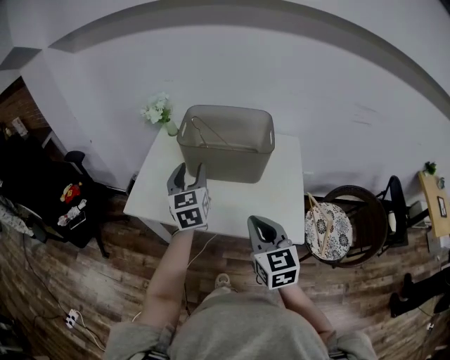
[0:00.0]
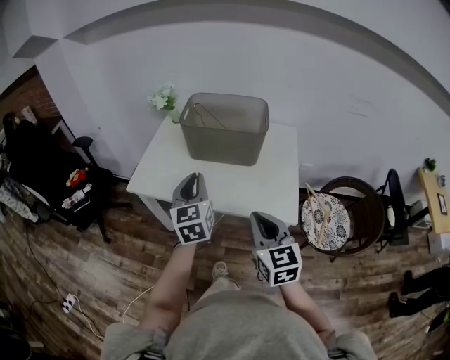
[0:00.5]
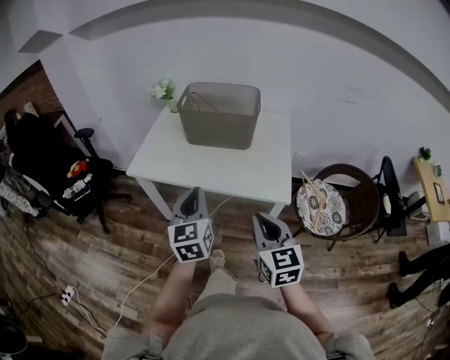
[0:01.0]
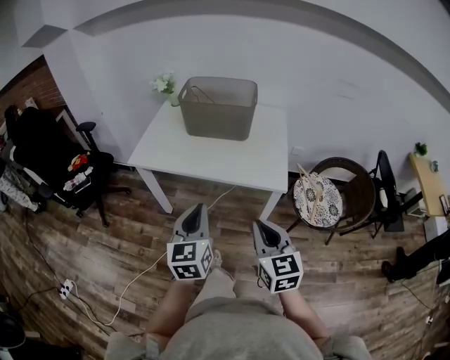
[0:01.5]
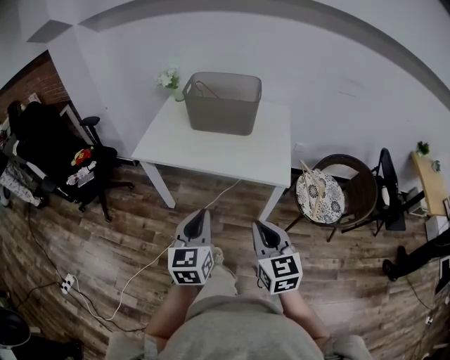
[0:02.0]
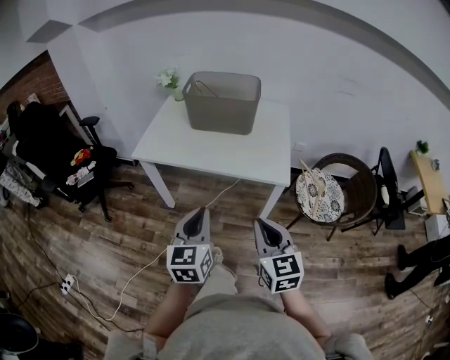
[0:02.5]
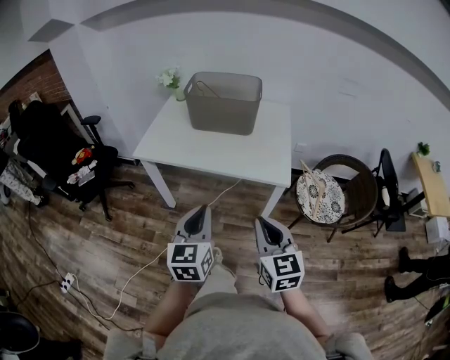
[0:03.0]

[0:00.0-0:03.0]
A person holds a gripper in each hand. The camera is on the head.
0:00.0 to 0:01.5: Both grippers move backward, roughly 35 cm. The left gripper closes up.
0:01.5 to 0:03.0: There are only small adjustments of the grippers.

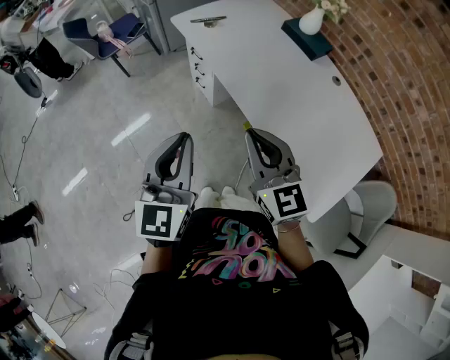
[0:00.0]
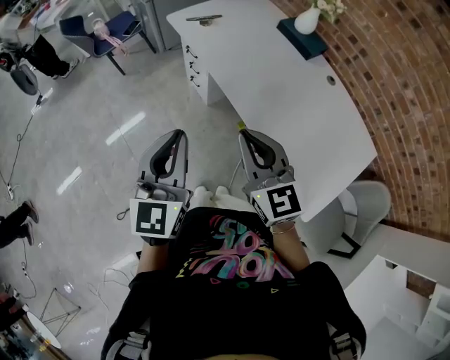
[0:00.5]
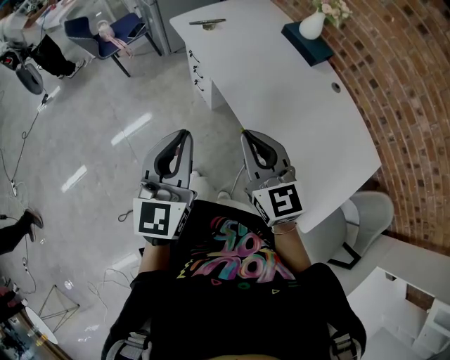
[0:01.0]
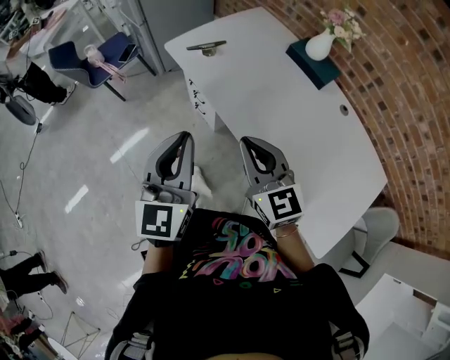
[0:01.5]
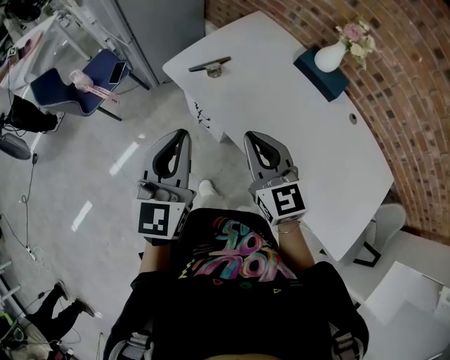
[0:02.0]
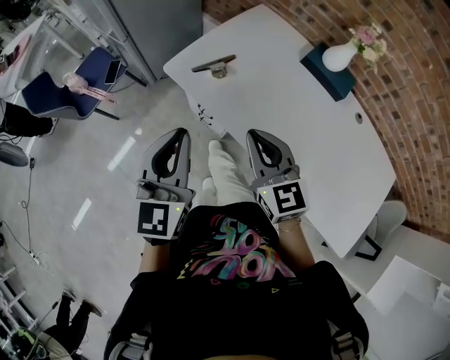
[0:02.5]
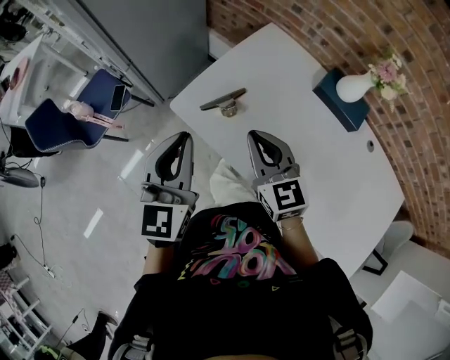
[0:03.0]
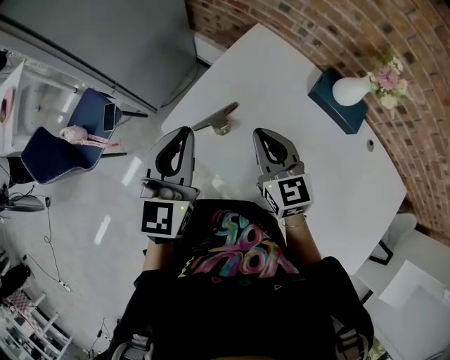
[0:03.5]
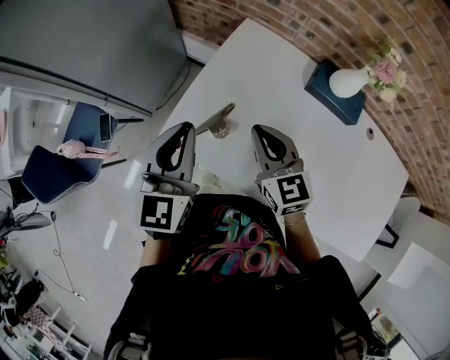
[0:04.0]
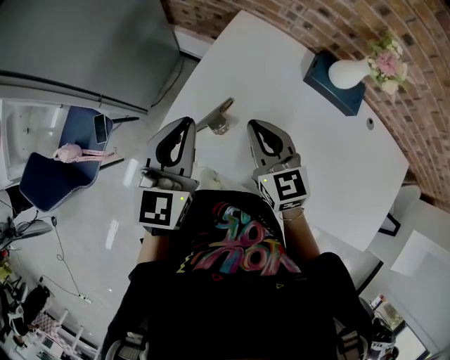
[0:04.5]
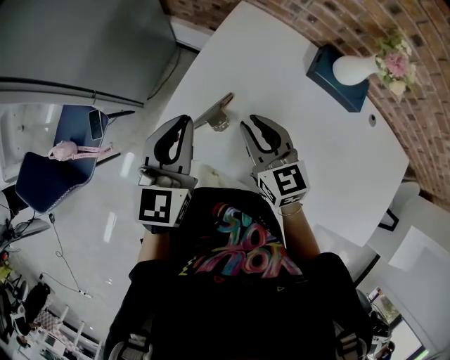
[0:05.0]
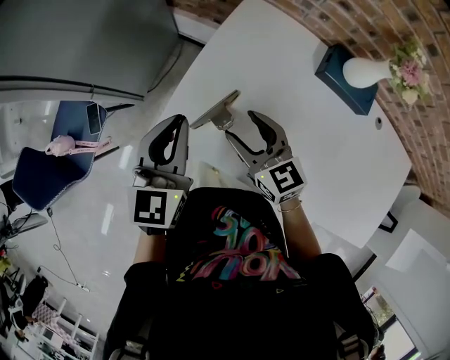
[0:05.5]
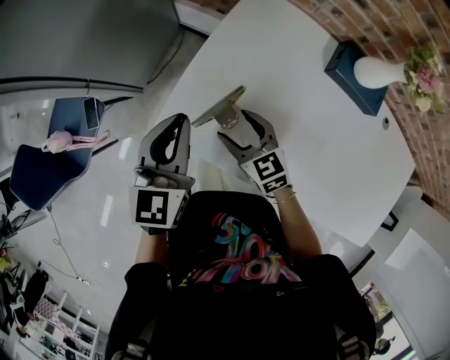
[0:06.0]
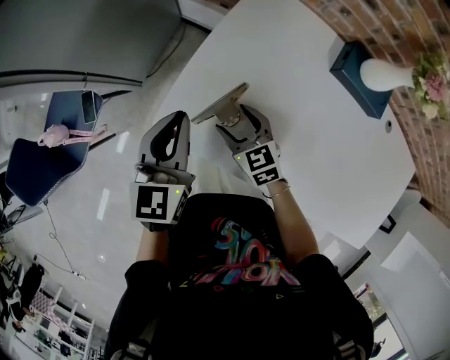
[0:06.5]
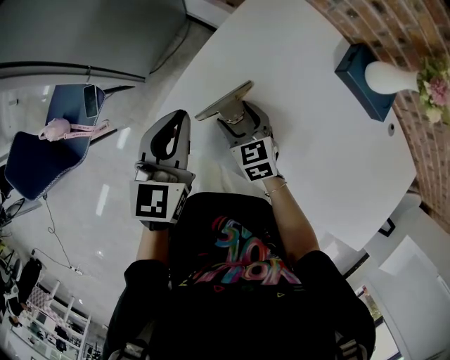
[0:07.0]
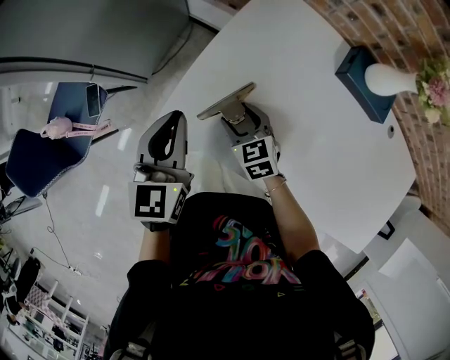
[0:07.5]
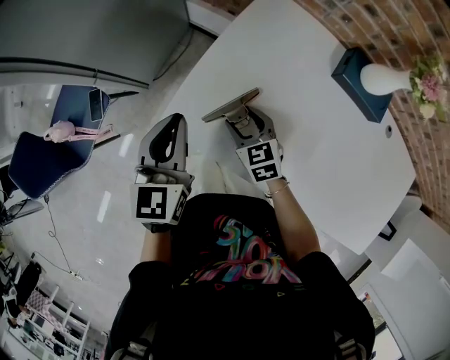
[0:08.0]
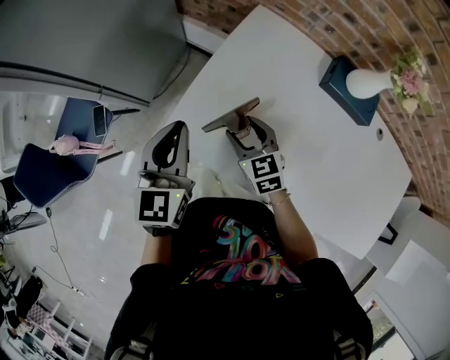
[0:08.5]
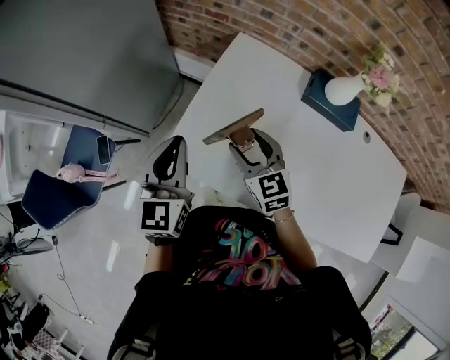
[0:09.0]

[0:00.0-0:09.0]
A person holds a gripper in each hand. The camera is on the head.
0:00.0 to 0:02.0: Both grippers travel together forward, approximately 40 cm.
0:02.0 to 0:04.5: The two grippers go roughly 35 cm forward. The left gripper changes its angle by roughly 20 degrees.
0:04.5 to 0:07.0: The left gripper travels downward by roughly 15 cm, while the right gripper is displaced downward by roughly 20 cm, swivels some 20 degrees, and opens up.
0:07.0 to 0:09.0: The left gripper shifts some 10 cm upward; the right gripper is displaced upward by roughly 20 cm.

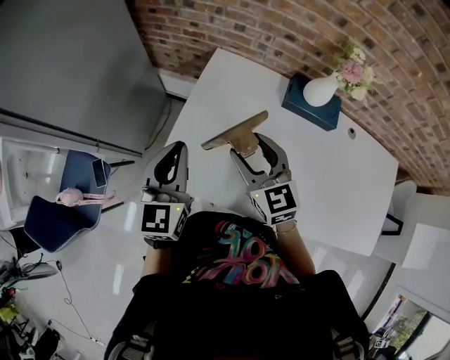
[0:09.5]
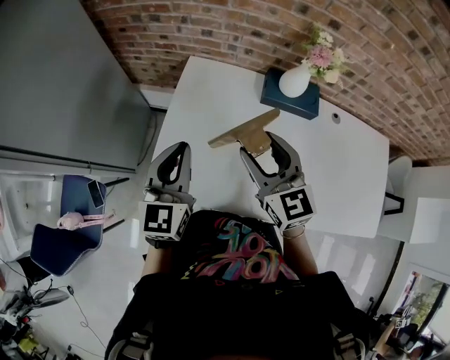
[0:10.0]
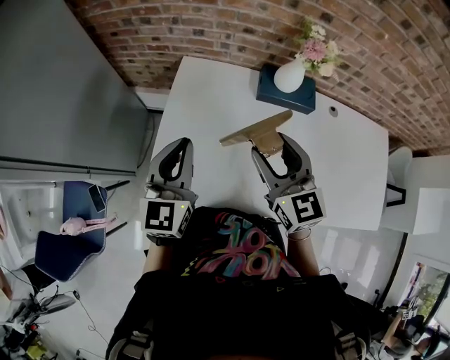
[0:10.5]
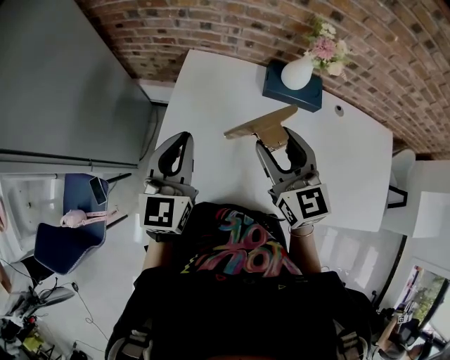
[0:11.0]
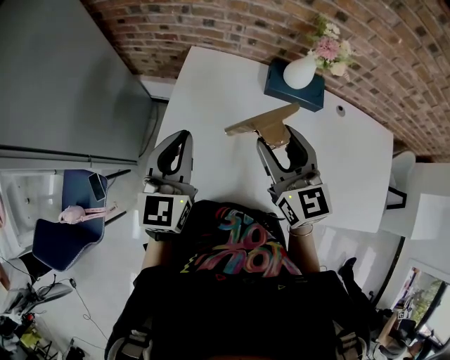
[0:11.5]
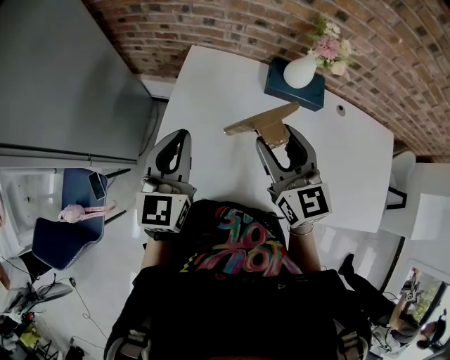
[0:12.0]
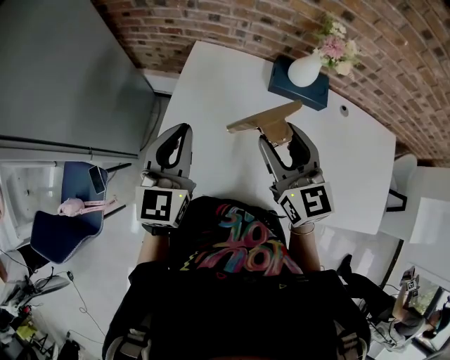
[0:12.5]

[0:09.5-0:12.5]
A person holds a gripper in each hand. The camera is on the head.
0:09.5 to 0:11.0: The left gripper travels to the right by roughly 5 cm. Meanwhile the right gripper shifts approximately 10 cm to the right and upward.
0:11.0 to 0:12.5: Neither gripper changes place.

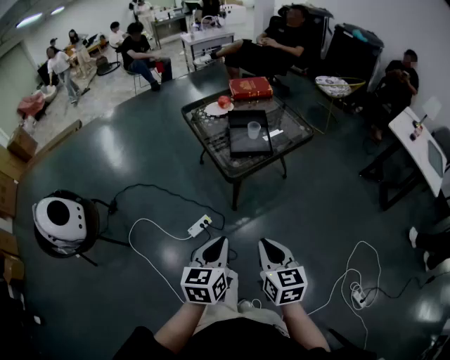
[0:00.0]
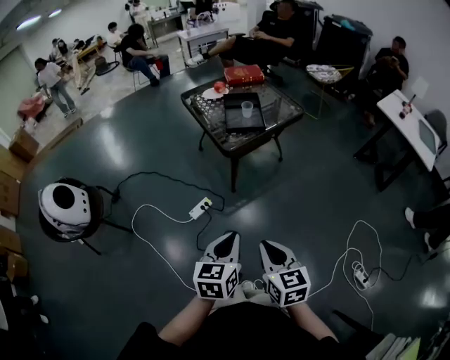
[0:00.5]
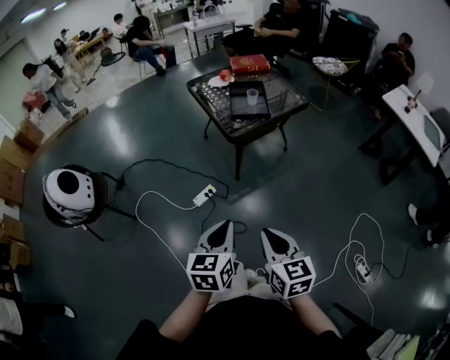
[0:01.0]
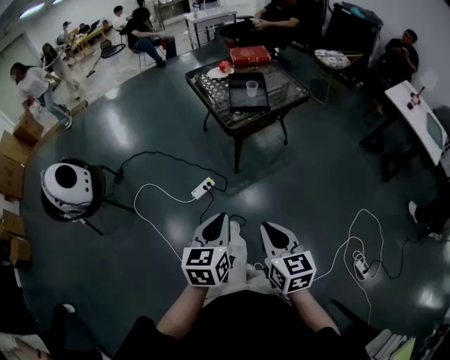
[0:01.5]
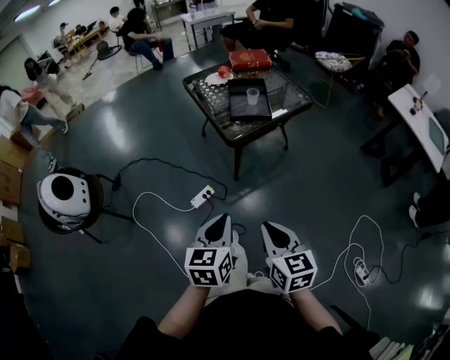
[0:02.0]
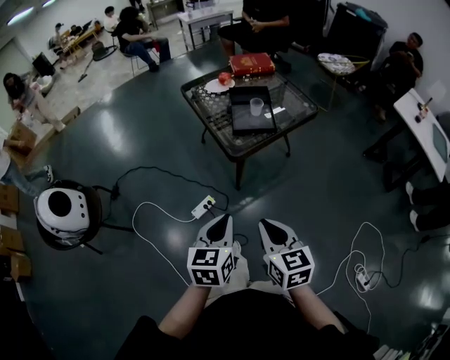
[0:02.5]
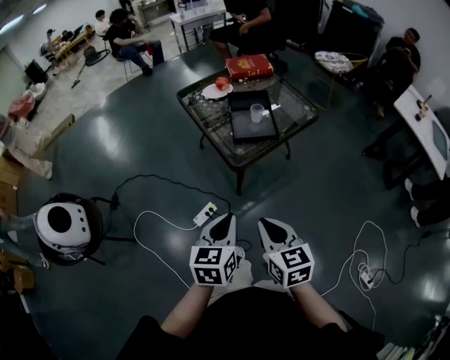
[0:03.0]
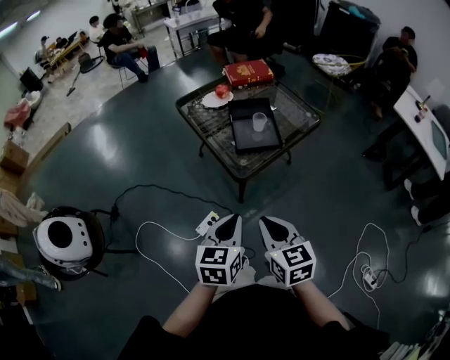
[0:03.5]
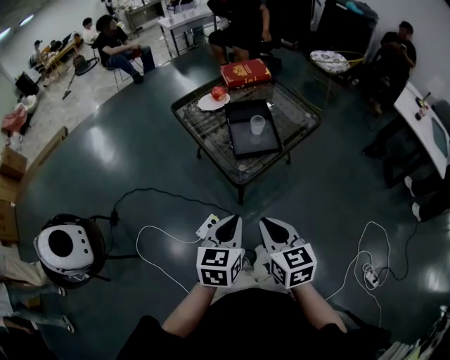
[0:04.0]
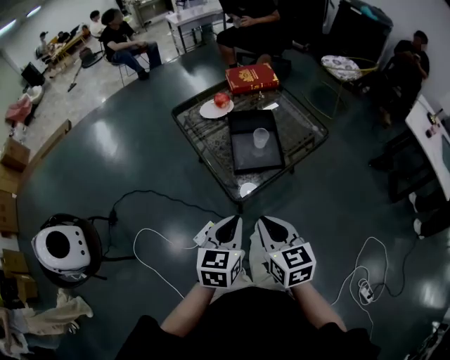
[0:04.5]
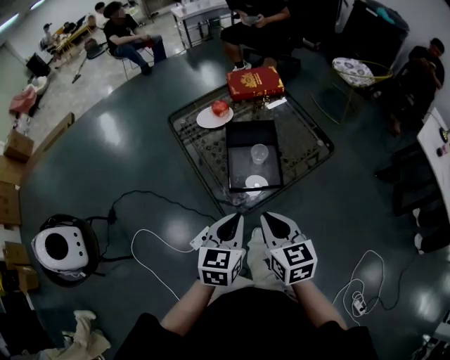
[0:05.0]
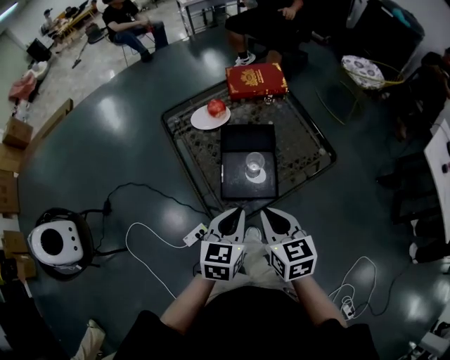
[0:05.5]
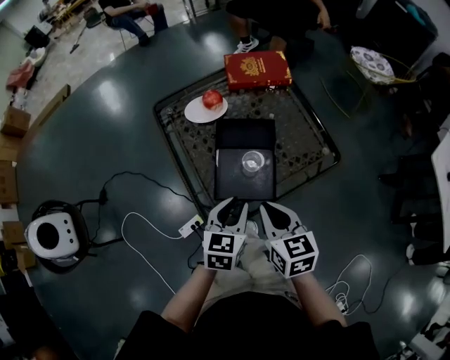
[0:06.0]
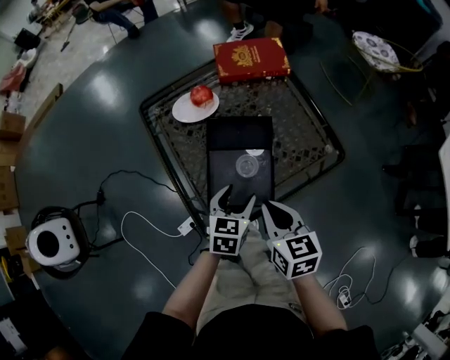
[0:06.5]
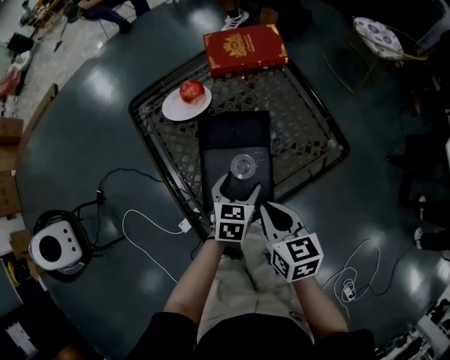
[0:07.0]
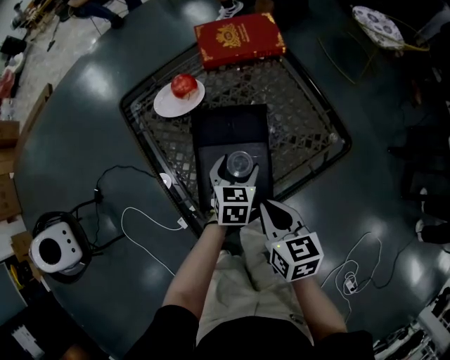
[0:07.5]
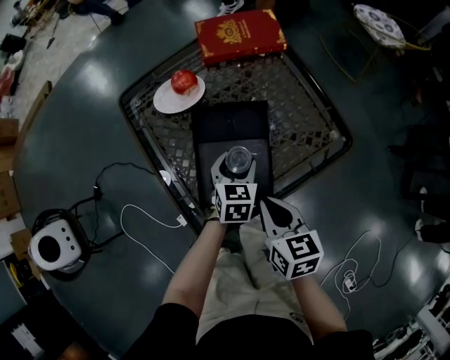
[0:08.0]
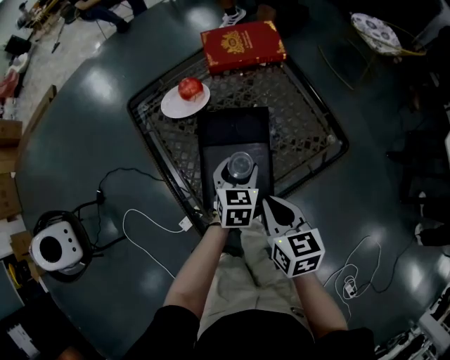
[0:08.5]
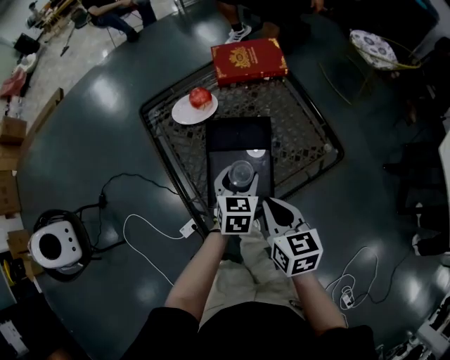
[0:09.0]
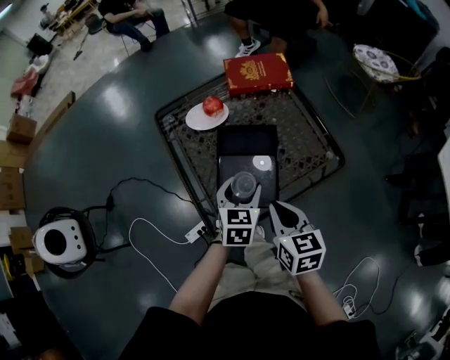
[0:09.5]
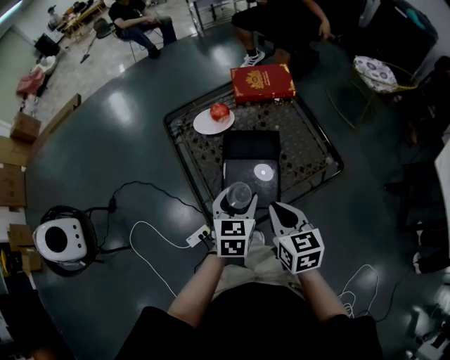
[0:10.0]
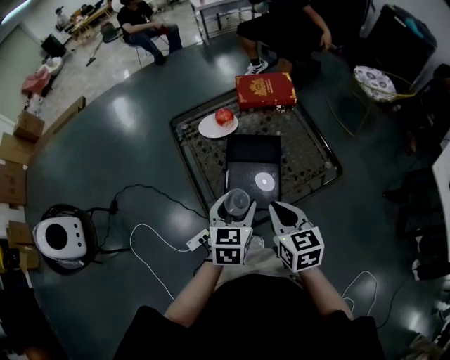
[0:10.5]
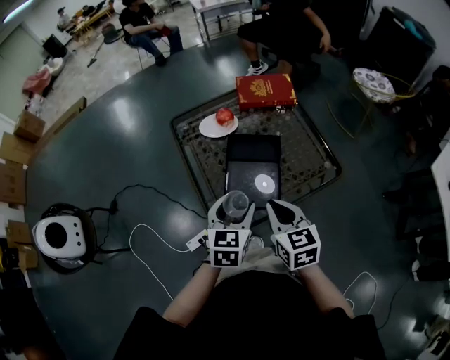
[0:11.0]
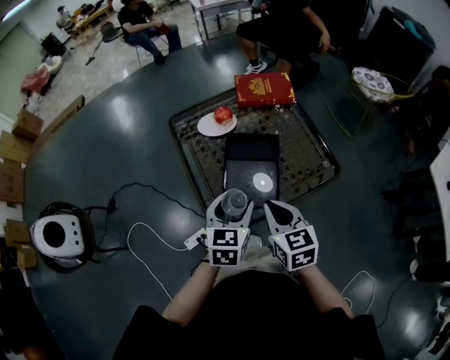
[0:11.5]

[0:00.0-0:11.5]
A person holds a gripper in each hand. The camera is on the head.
0:00.0 to 0:02.0: Both grippers travel together backward, some 10 cm.
0:02.0 to 0:04.0: Both grippers travel together forward, roughly 25 cm.
0:04.0 to 0:06.0: The two grippers go about 35 cm forward and to the right.
0:06.0 to 0:07.5: The right gripper heads downward, covering some 10 cm. Meanwhile the left gripper goes about 20 cm downward and forward, and opens.
0:07.5 to 0:09.5: The right gripper heads upward, covering approximately 5 cm. Meanwhile the left gripper shifts approximately 15 cm upward and backward.
0:09.5 to 0:11.5: The left gripper shifts approximately 10 cm upward and backward. Meanwhile the right gripper ends up some 5 cm from where it was.
